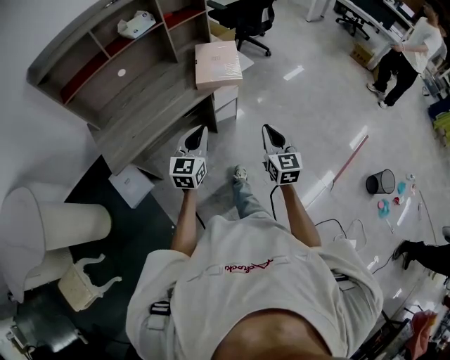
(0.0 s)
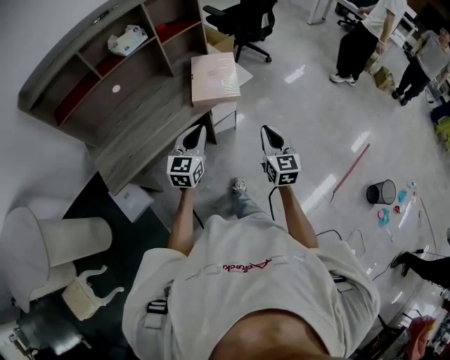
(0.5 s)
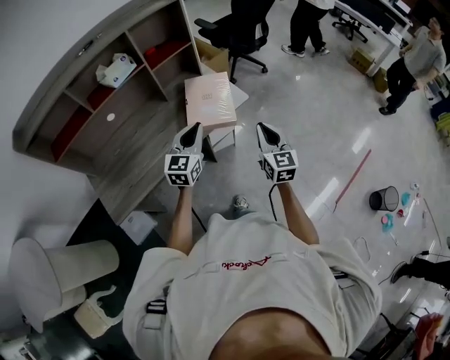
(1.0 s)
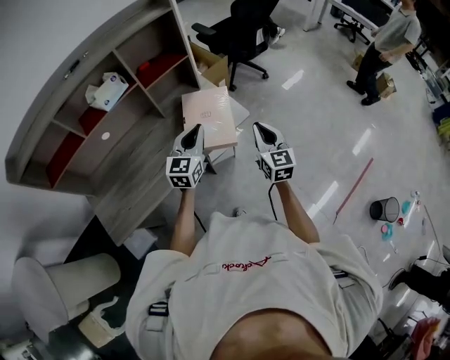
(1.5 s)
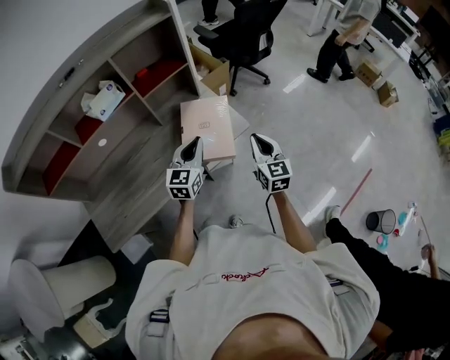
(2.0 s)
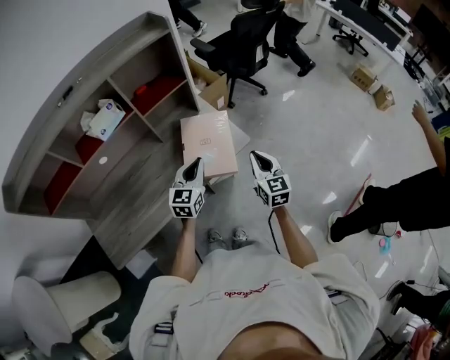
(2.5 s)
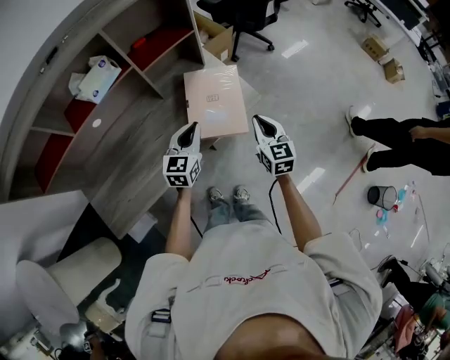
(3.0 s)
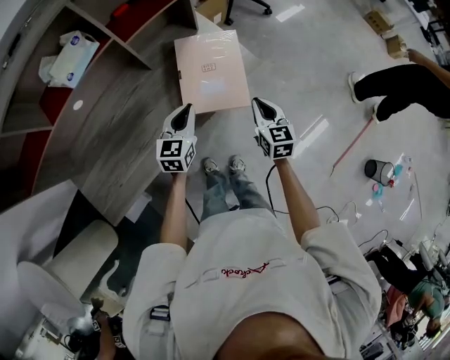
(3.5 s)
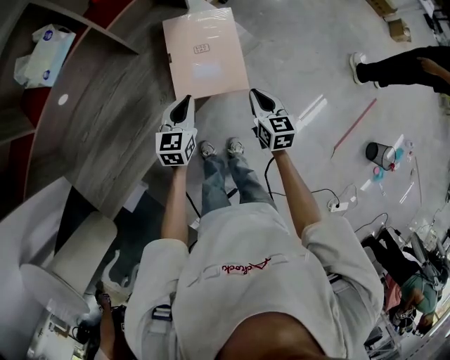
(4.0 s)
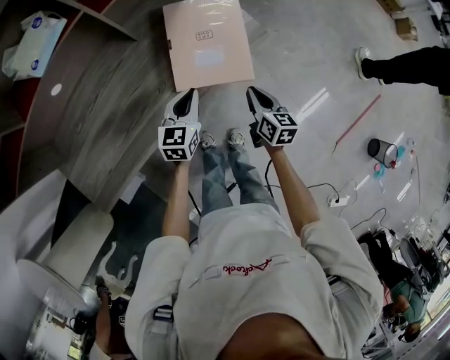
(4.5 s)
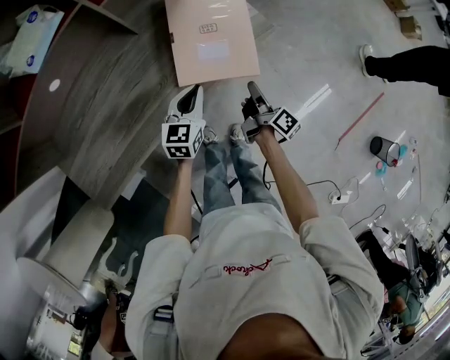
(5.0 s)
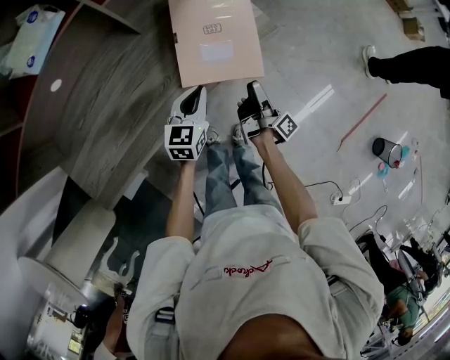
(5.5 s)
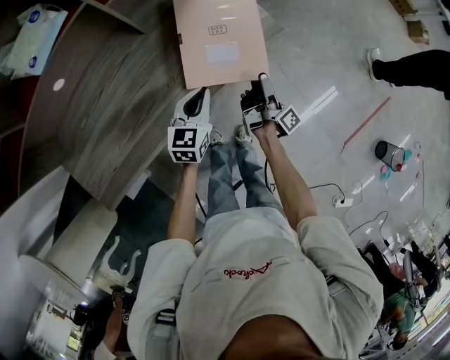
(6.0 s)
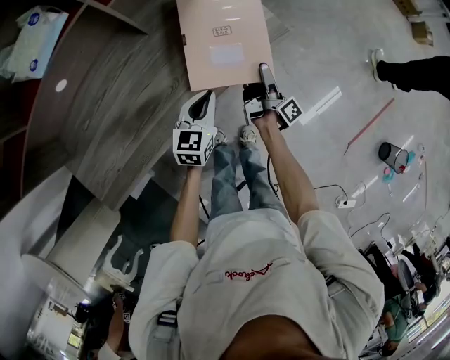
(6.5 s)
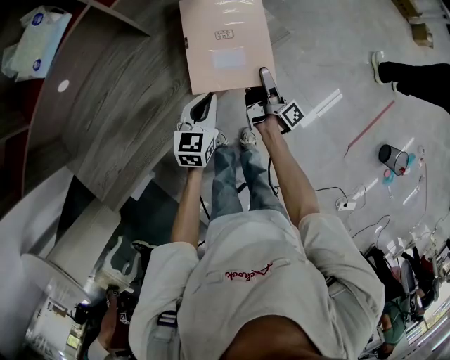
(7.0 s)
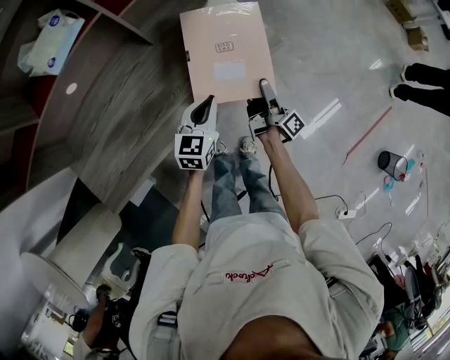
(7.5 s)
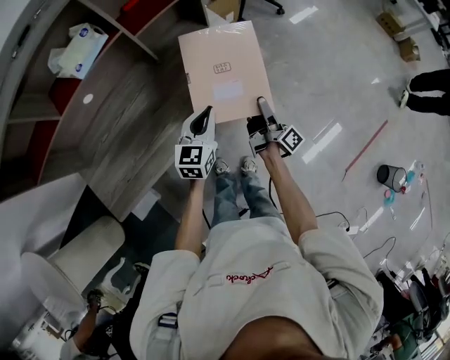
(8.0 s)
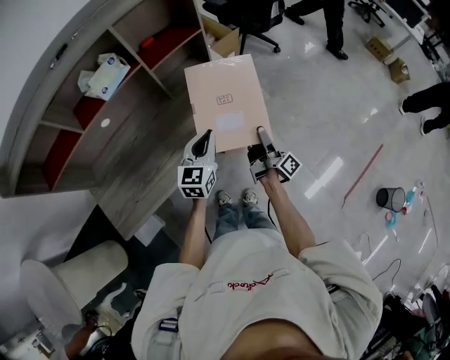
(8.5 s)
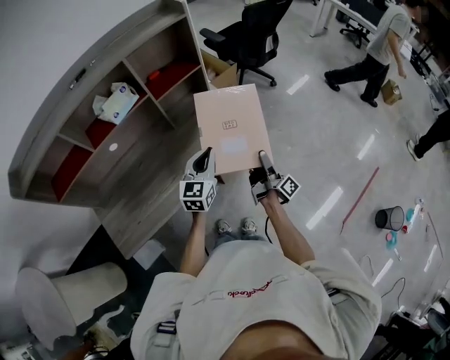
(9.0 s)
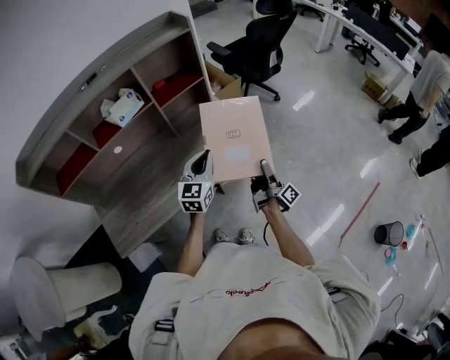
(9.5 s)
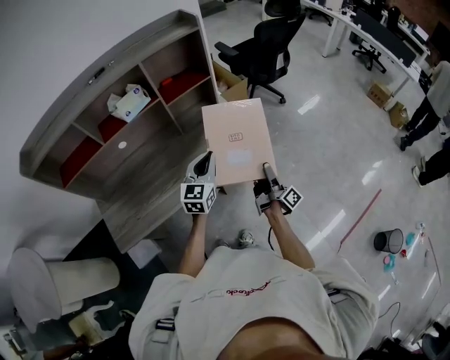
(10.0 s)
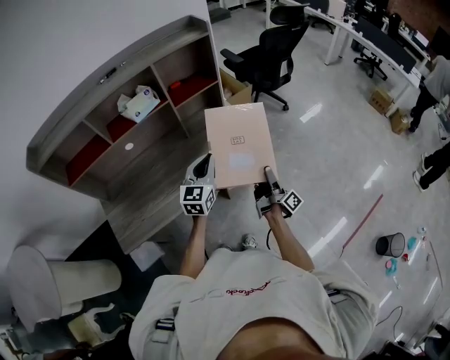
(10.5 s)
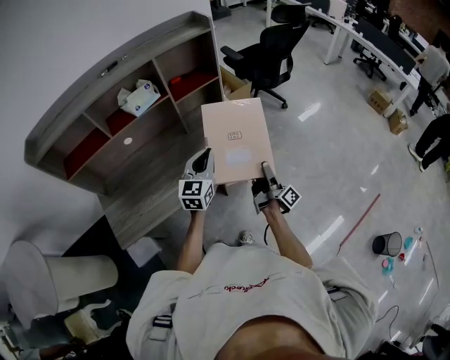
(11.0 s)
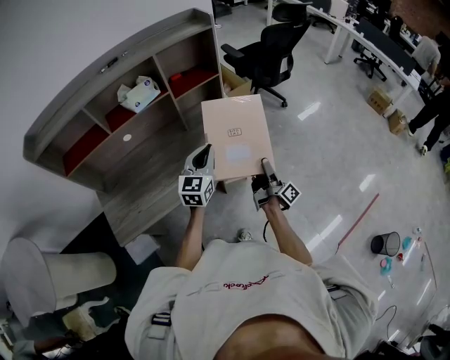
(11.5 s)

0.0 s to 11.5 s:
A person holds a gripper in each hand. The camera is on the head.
0.0 to 2.0 s: Both grippers travel together forward, approximately 40 cm.
2.0 to 4.0 s: The two grippers go about 20 cm downward. The right gripper swivels roughly 20 degrees.
4.0 to 6.0 s: The right gripper heads downward, covering some 5 cm, rotates around the line of its fingers by roughly 80 degrees, clockwise from behind, and opens its fingers.
6.0 to 7.5 s: The grippers stay close to where they were, moving slightly.
7.5 to 9.5 s: The right gripper is displaced upward and to the right by some 15 cm; the left gripper is displaced upward by roughly 20 cm.
9.5 to 11.5 s: The grippers move only a little.

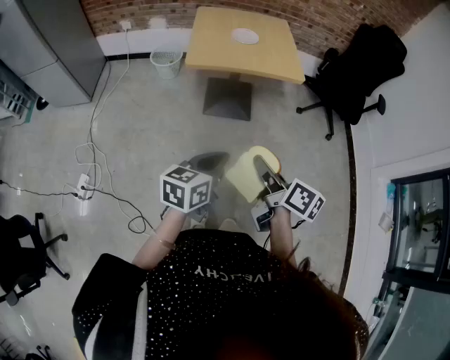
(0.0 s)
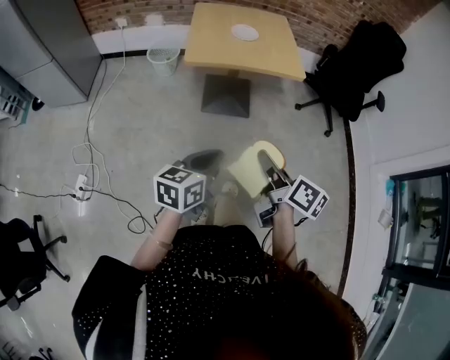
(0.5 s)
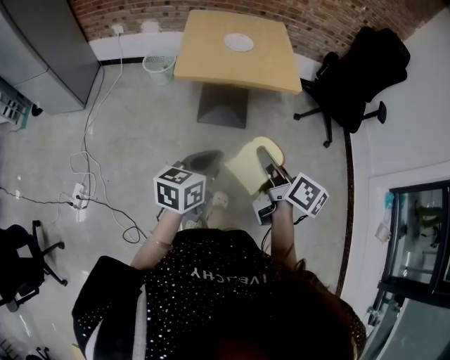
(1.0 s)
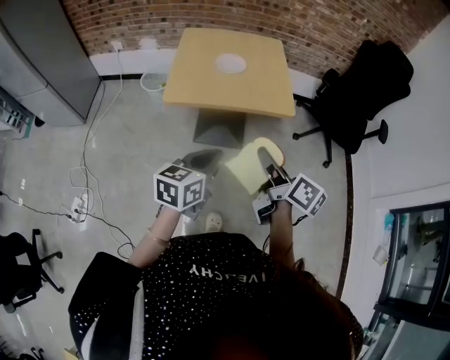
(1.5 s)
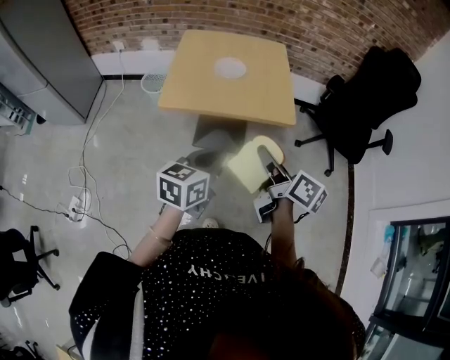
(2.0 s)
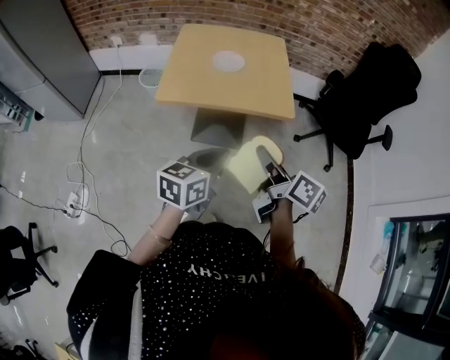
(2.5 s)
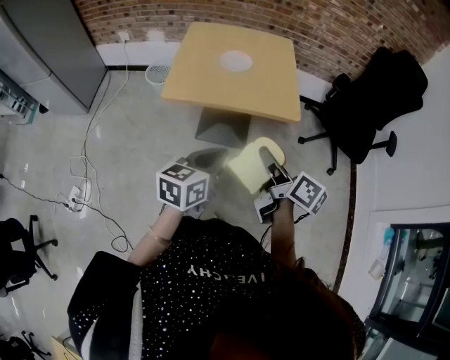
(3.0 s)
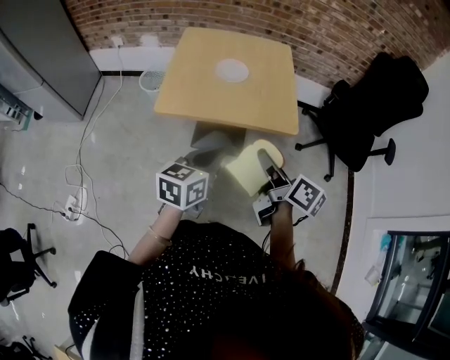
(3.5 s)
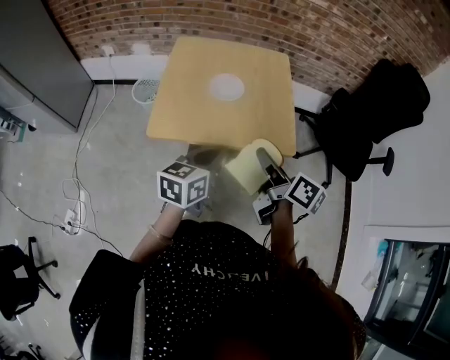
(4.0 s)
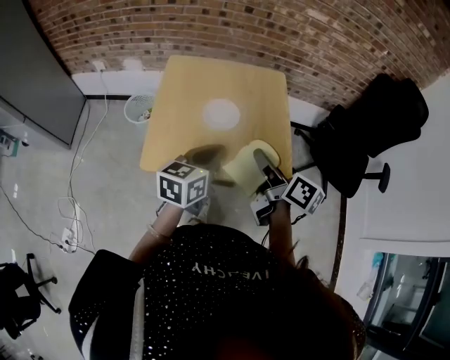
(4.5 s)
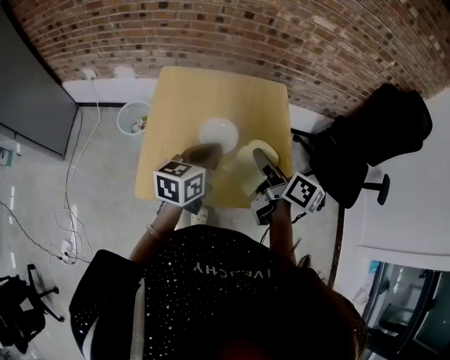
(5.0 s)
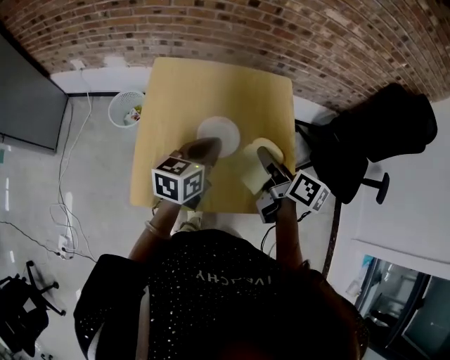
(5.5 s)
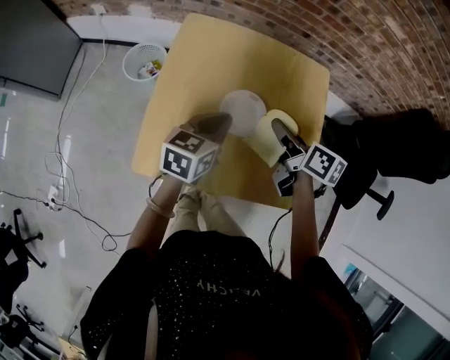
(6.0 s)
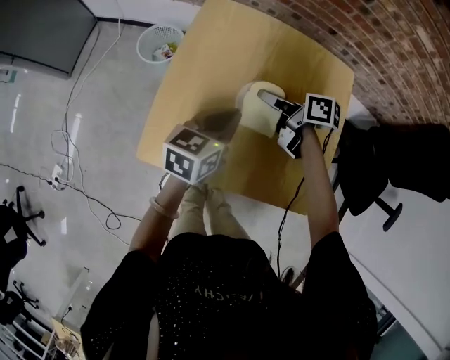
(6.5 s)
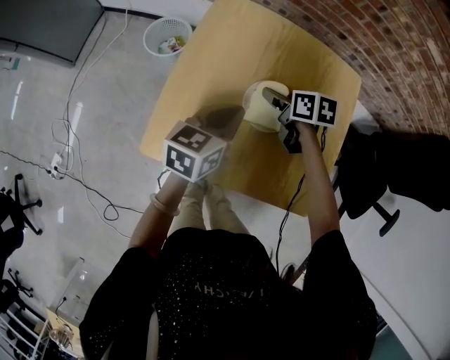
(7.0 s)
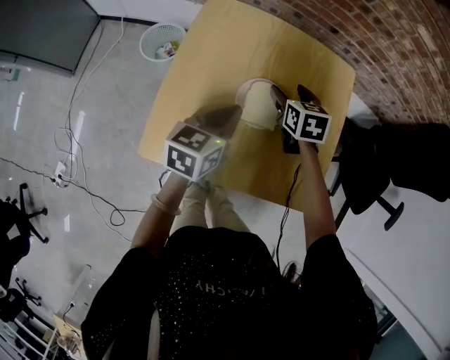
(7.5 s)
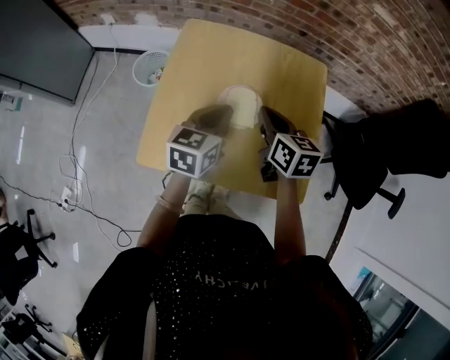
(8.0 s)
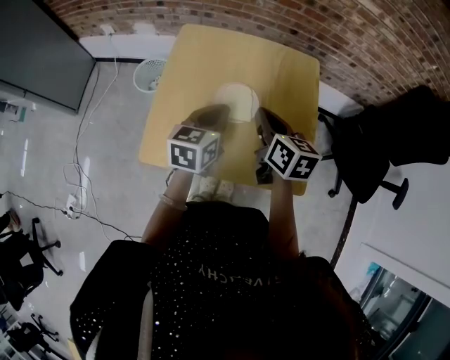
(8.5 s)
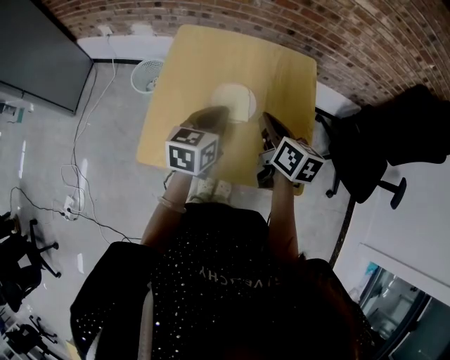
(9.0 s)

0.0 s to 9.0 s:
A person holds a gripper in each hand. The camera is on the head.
0.0 to 2.0 s: Both grippers move forward, roughly 30 cm.
2.0 to 4.5 s: The grippers both shift forward by approximately 30 cm.
4.5 to 7.0 s: The left gripper moves some 25 cm, while the right gripper changes place by roughly 40 cm, and tilts its fingers approximately 40 degrees downward.
7.0 to 9.0 s: The left gripper travels upward and to the right by about 10 cm. Meanwhile the right gripper moves upward, backward and to the right, some 20 cm, changes its angle by roughly 40 degrees, and closes its fingers.

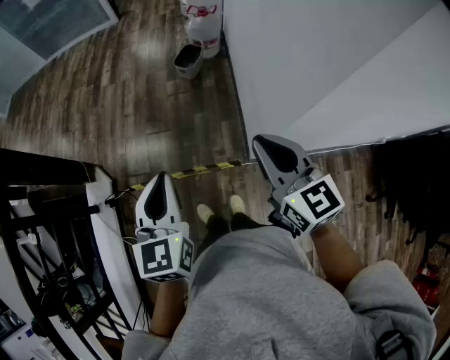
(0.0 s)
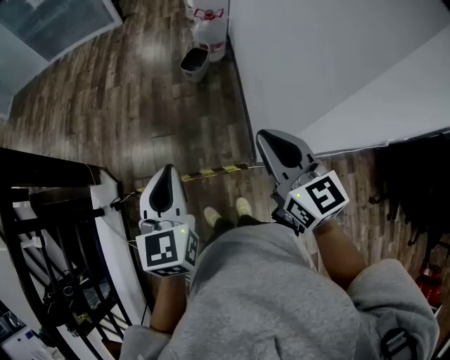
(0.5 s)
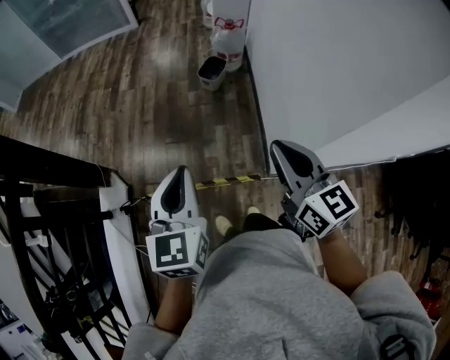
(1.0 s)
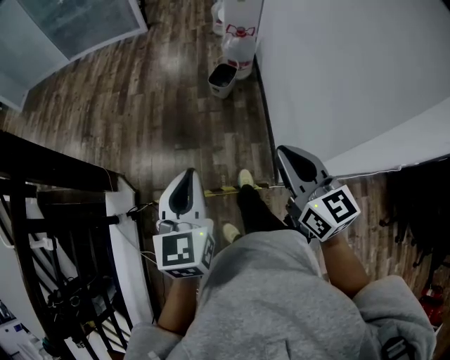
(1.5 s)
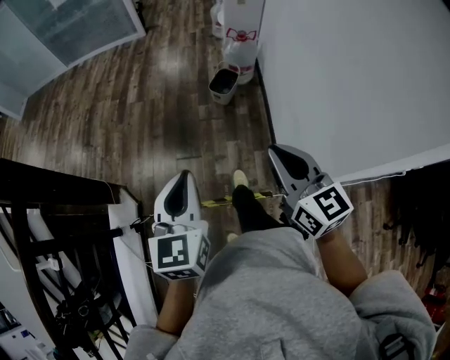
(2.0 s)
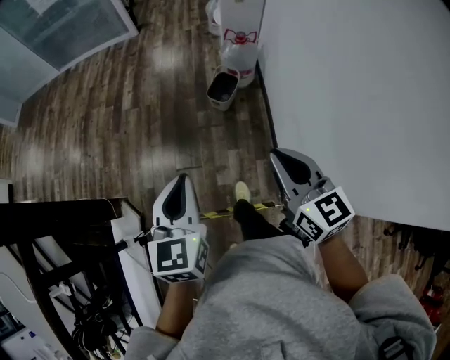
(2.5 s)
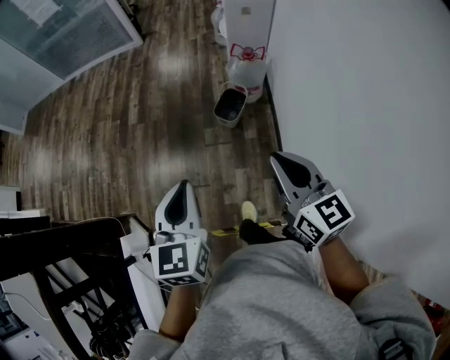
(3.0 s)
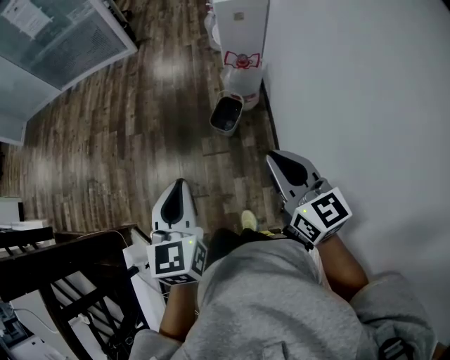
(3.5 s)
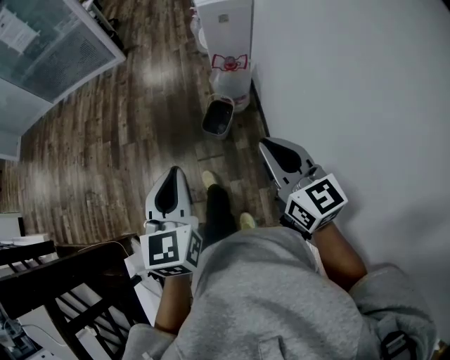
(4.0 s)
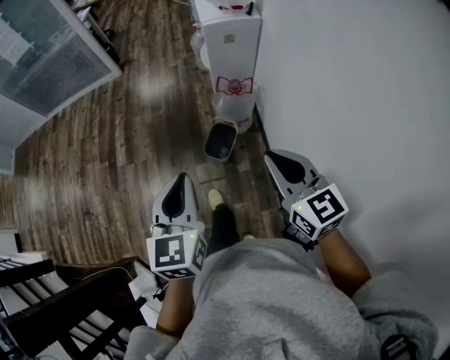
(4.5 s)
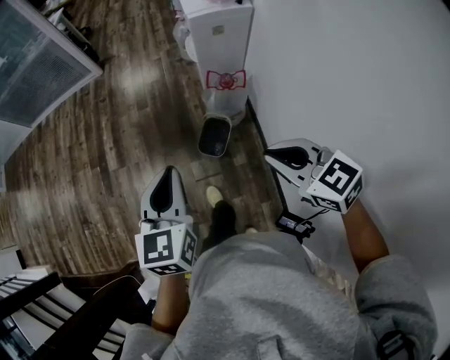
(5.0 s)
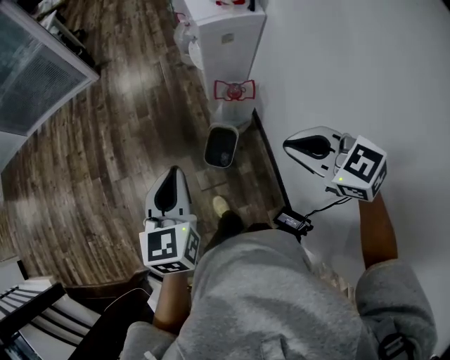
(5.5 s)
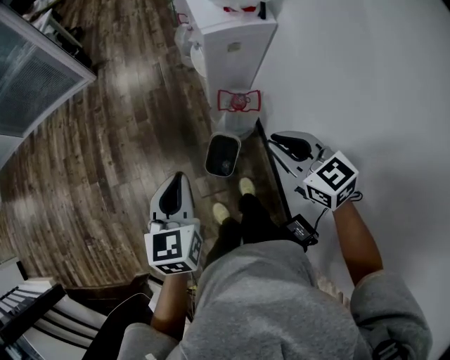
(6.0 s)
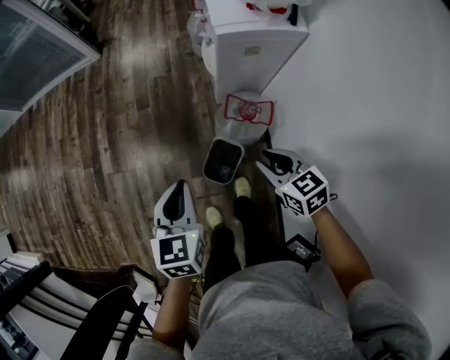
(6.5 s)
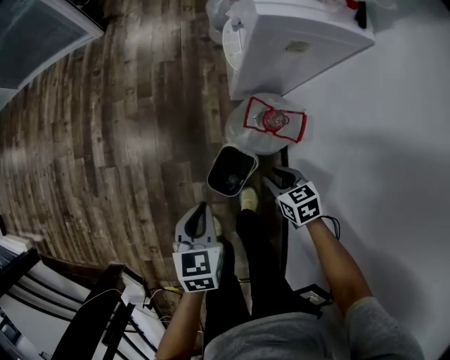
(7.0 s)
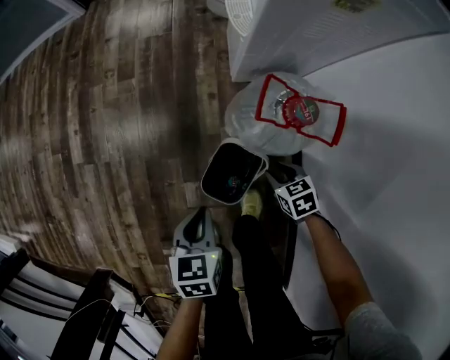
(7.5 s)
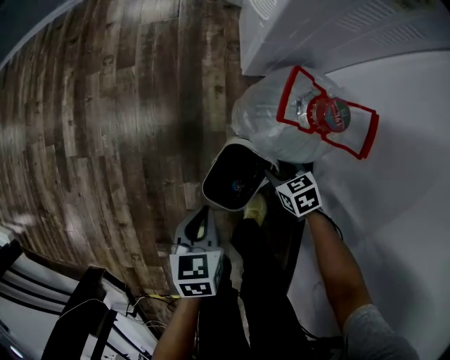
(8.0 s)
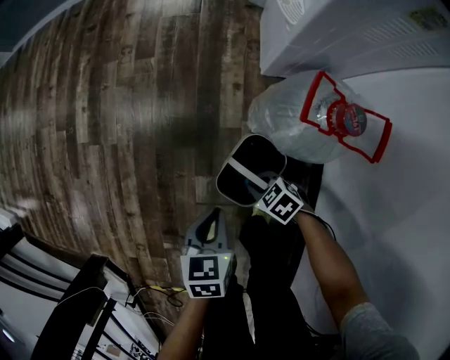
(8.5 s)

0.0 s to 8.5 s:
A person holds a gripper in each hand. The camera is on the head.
0.0 to 2.0 s: The grippers both shift forward and to the left by some 20 cm.
2.0 to 4.0 s: Both grippers travel together forward, roughly 35 cm.
4.0 to 6.5 s: The two grippers travel together, forward, about 50 cm. The right gripper goes some 25 cm downward, and tilts its fingers roughly 30 degrees downward.
6.5 to 8.5 s: Both grippers travel together downward, about 50 cm. The right gripper swivels some 40 degrees; the left gripper swivels approximately 30 degrees.
